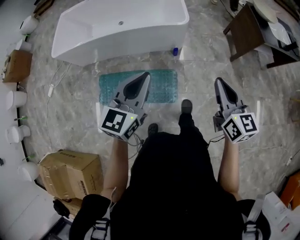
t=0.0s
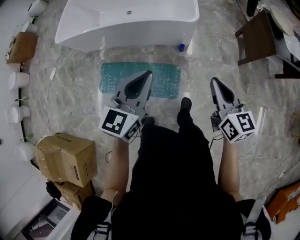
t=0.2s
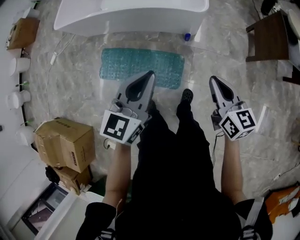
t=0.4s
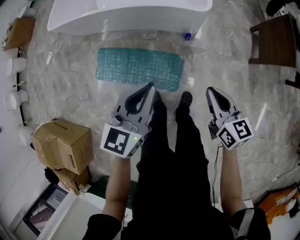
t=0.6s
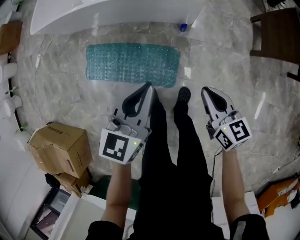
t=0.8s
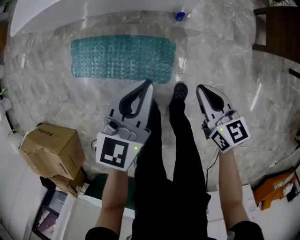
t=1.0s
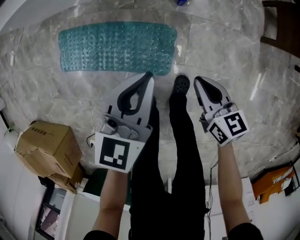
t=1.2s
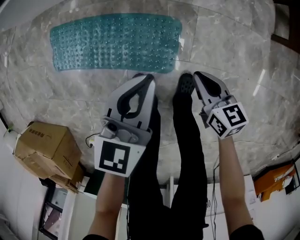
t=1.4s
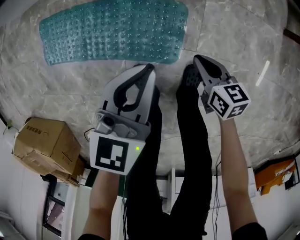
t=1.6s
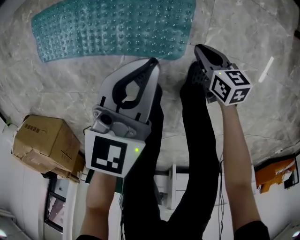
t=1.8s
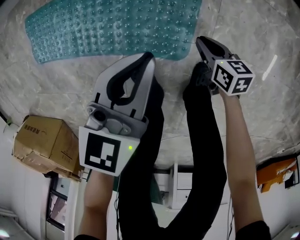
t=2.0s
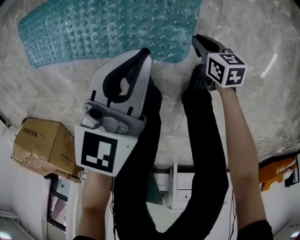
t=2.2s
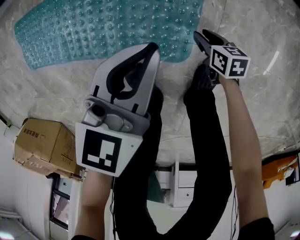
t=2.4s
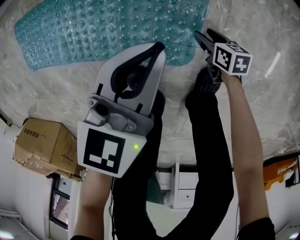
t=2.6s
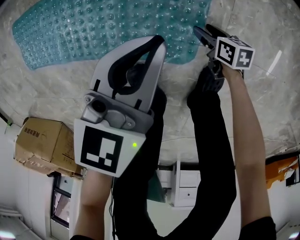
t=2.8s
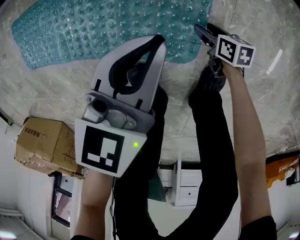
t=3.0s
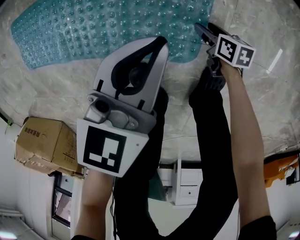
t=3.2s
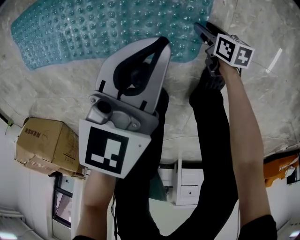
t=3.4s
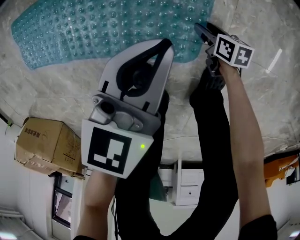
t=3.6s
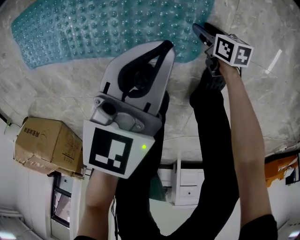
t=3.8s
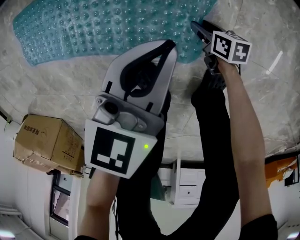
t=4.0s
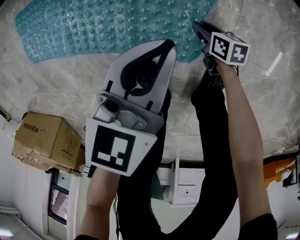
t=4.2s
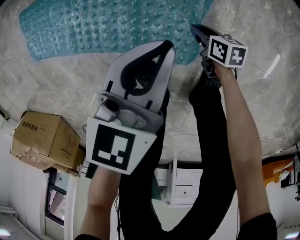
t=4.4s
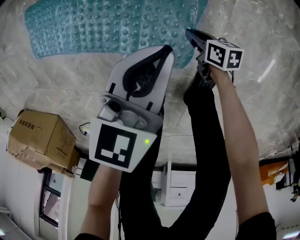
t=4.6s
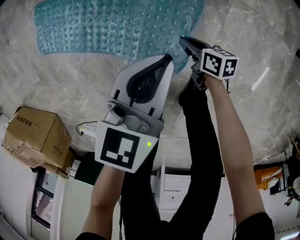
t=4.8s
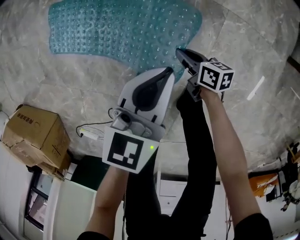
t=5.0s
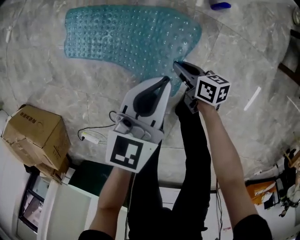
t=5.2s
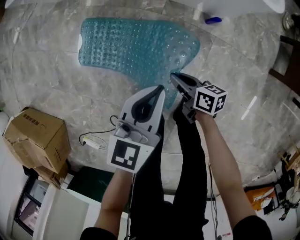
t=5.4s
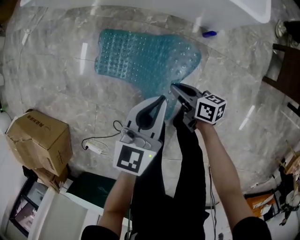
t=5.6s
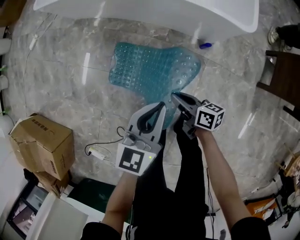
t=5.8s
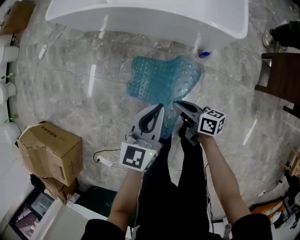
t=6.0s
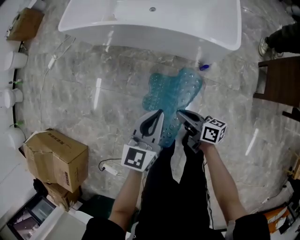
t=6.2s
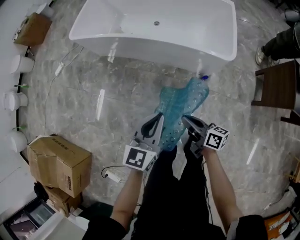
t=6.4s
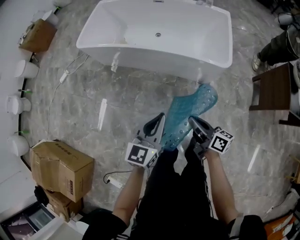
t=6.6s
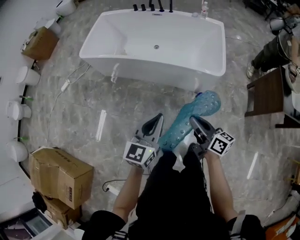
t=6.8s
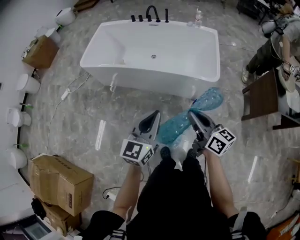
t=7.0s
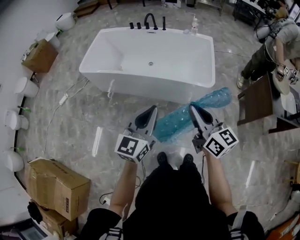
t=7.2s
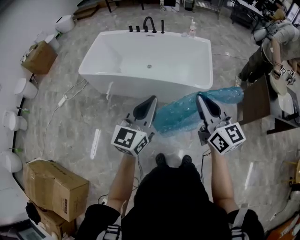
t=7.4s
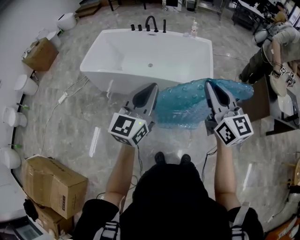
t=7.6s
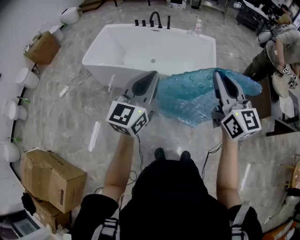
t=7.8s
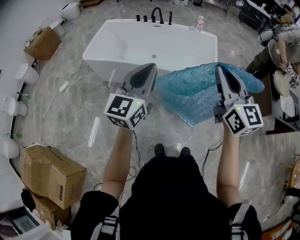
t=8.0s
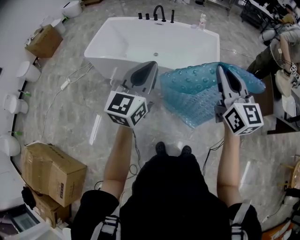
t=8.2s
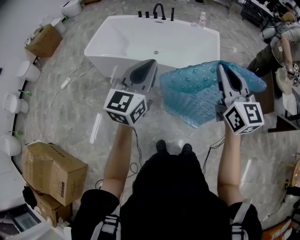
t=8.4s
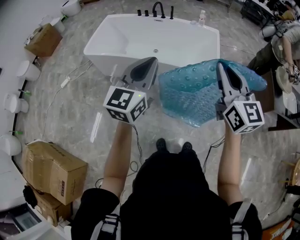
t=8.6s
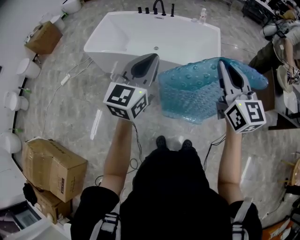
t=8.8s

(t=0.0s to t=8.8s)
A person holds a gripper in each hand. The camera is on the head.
t=0.0s - t=1.4s: The grippers both shift downward by about 60 cm. The left gripper swivels roughly 20 degrees. Meanwhile the right gripper changes its angle by about 40 degrees.
t=1.4s - t=3.0s: The right gripper goes some 50 cm downward, changes its angle by some 30 degrees, and opens up. Meanwhile the left gripper travels downward by some 30 cm.
t=3.0s - t=4.4s: The right gripper travels to the left by about 5 cm, and closes its fingers.
t=4.4s - t=5.8s: The two grippers go roughly 50 cm upward. The right gripper turns by roughly 30 degrees; the left gripper rotates approximately 20 degrees.
t=5.8s - t=7.4s: The two grippers go approximately 50 cm upward. The right gripper rotates roughly 70 degrees. The left gripper changes its angle by some 30 degrees.
t=7.4s - t=8.8s: The grippers both shift upward by some 5 cm.

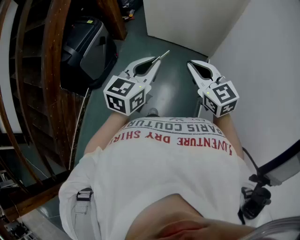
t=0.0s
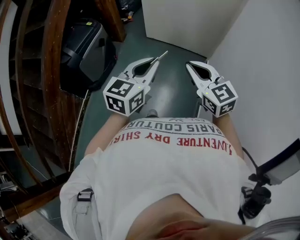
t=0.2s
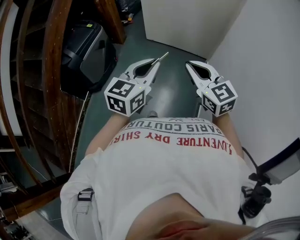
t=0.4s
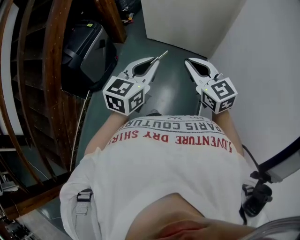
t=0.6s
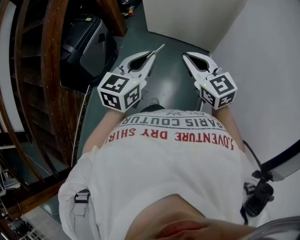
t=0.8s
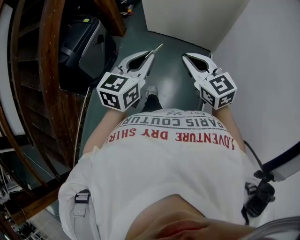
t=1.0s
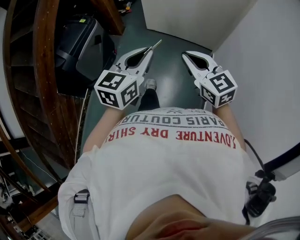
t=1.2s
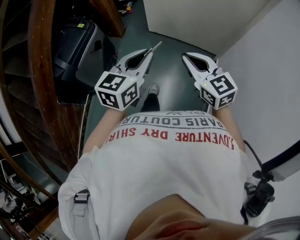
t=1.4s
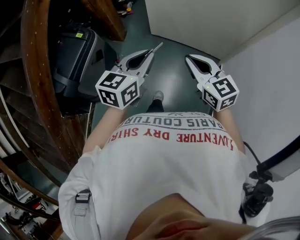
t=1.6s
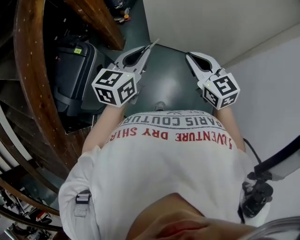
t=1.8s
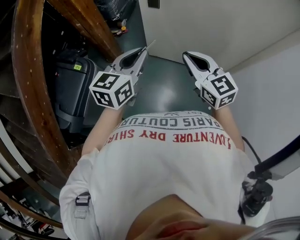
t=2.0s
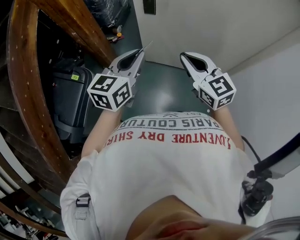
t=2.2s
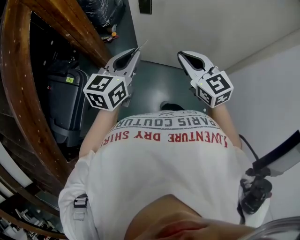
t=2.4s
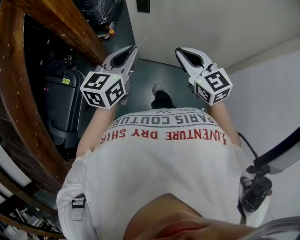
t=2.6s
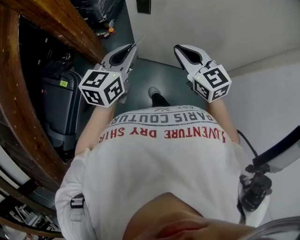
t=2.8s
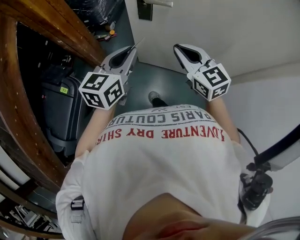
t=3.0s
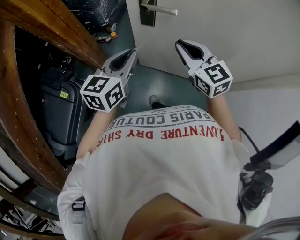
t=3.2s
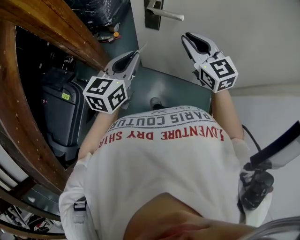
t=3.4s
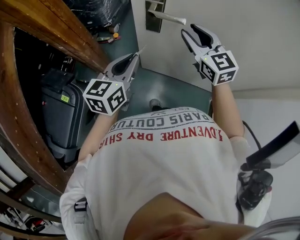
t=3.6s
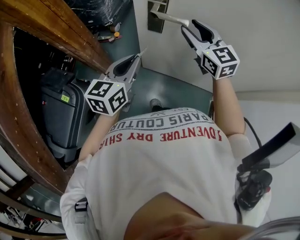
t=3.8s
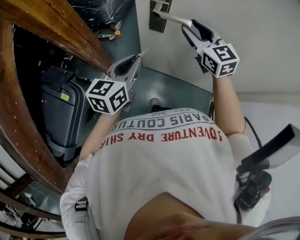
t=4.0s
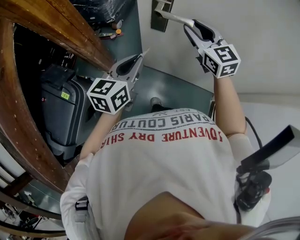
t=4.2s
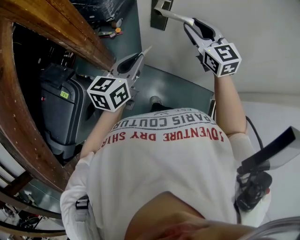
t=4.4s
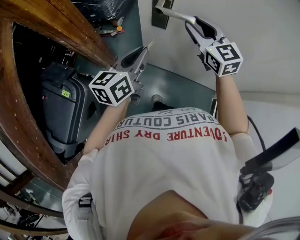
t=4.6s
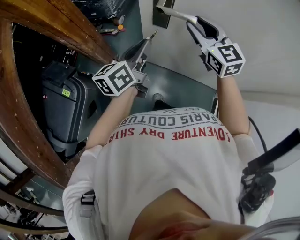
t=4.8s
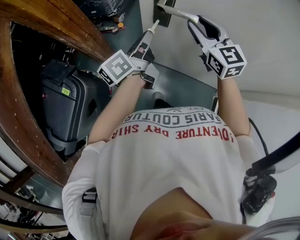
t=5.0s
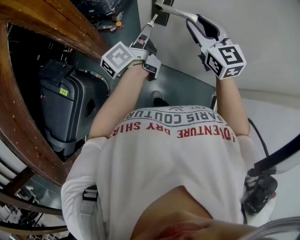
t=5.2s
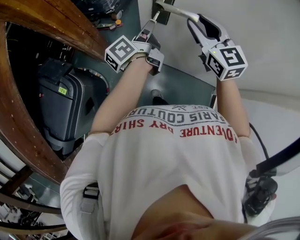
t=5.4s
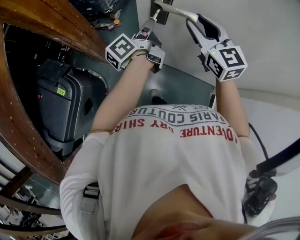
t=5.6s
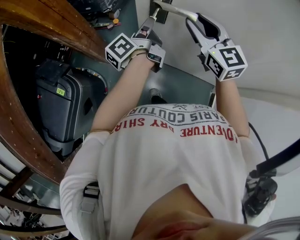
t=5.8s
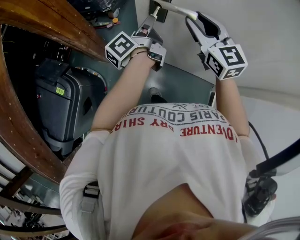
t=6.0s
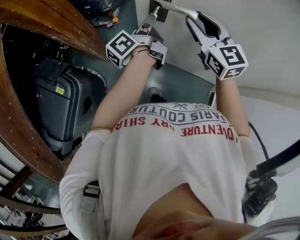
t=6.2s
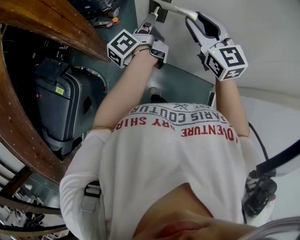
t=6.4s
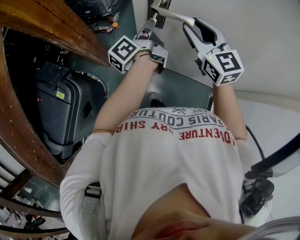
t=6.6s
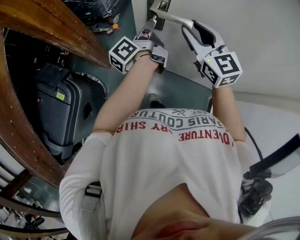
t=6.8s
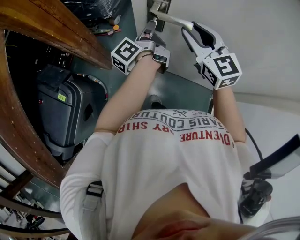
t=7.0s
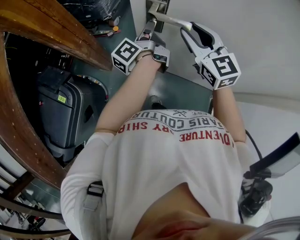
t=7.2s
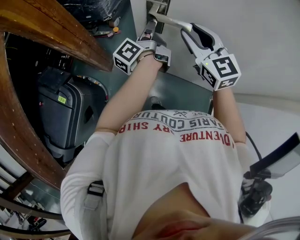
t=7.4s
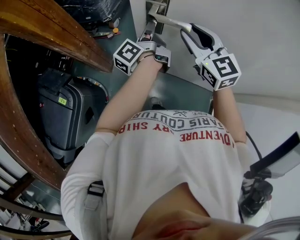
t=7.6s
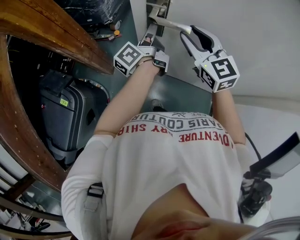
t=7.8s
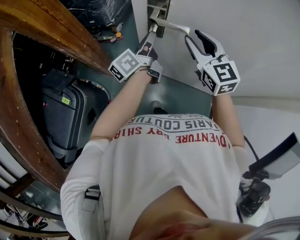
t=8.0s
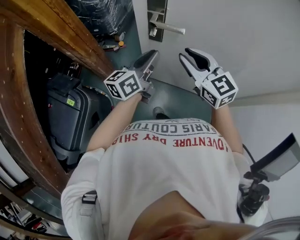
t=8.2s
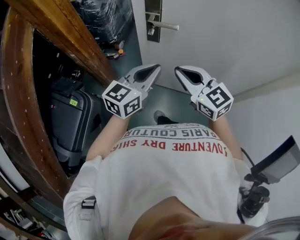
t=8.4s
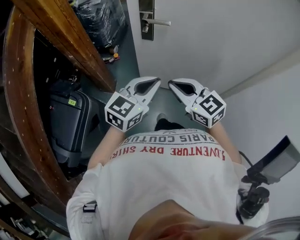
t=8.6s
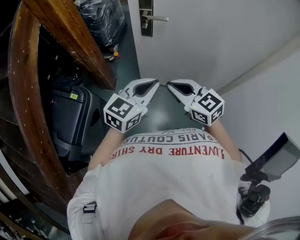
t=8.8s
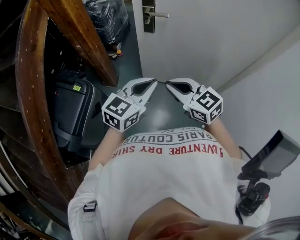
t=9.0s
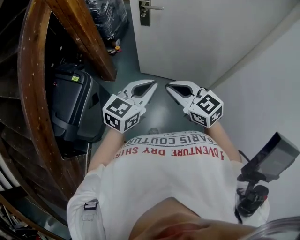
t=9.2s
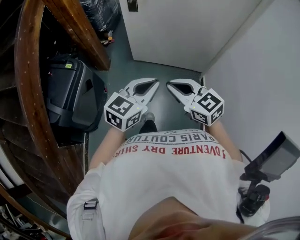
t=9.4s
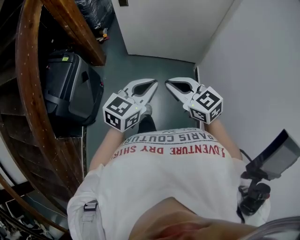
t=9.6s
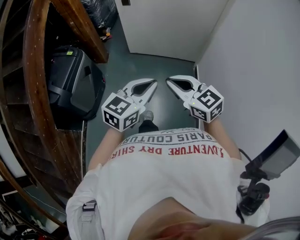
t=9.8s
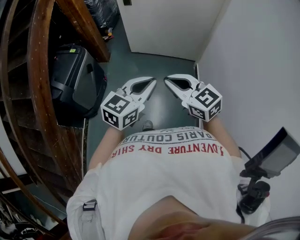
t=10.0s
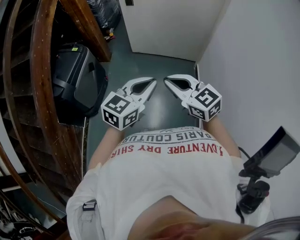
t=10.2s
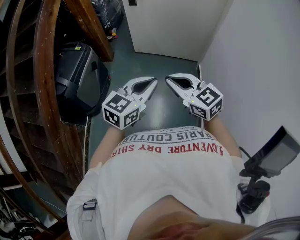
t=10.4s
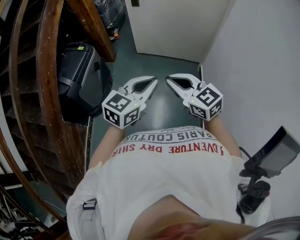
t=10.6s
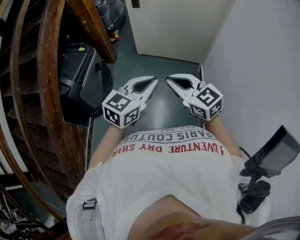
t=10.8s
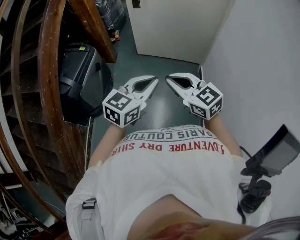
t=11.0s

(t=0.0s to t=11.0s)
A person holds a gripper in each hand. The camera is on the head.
t=0.0s - t=1.6s: The two grippers go roughly 35 cm forward.
t=1.6s - t=3.2s: The two grippers travel together, forward, approximately 40 cm.
t=3.2s - t=4.8s: The left gripper moves forward, about 10 cm, and changes its angle by roughly 30 degrees. Meanwhile the right gripper shifts about 10 cm forward, and opens up.
t=4.8s - t=6.2s: The left gripper heads forward, covering roughly 10 cm, and swivels approximately 40 degrees.
t=6.2s - t=7.8s: The grippers stay close to where they were, moving slightly.
t=7.8s - t=9.4s: Both grippers are carried backward, some 60 cm. The left gripper rolls clockwise, seen from behind, by about 70 degrees. The right gripper closes its fingers.
t=9.4s - t=11.0s: The grippers both shift backward by about 30 cm.

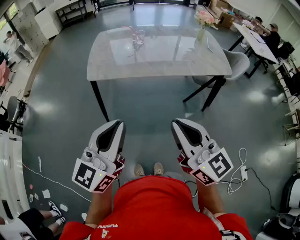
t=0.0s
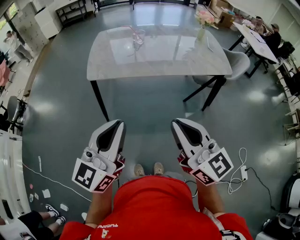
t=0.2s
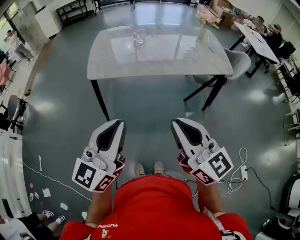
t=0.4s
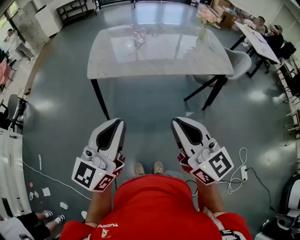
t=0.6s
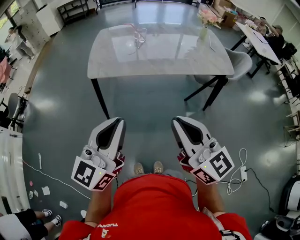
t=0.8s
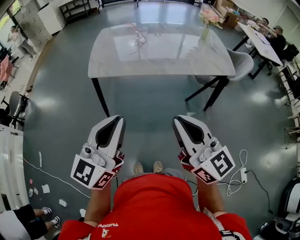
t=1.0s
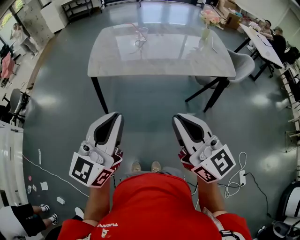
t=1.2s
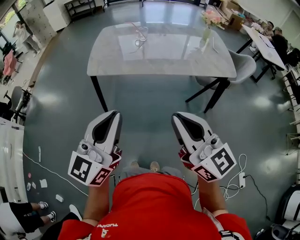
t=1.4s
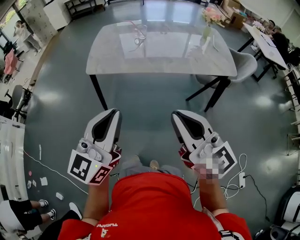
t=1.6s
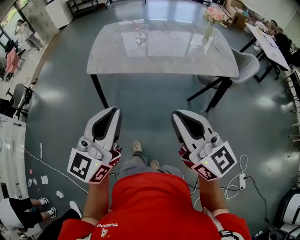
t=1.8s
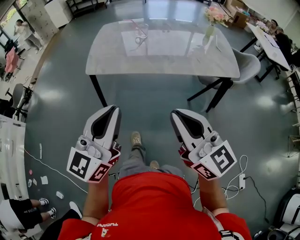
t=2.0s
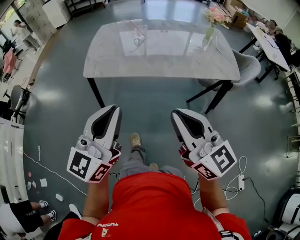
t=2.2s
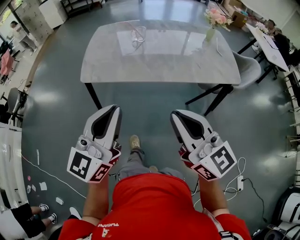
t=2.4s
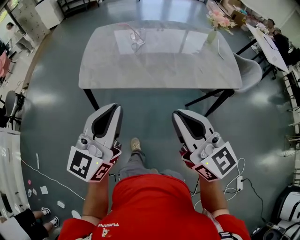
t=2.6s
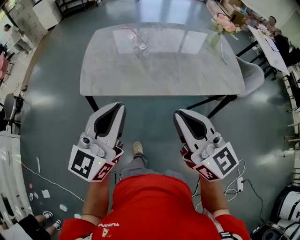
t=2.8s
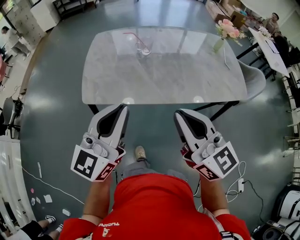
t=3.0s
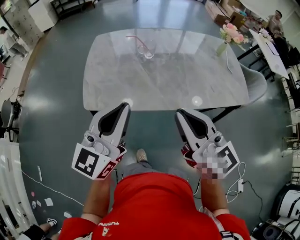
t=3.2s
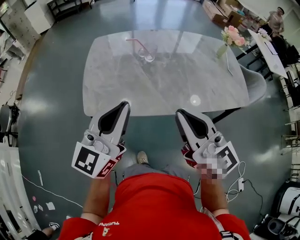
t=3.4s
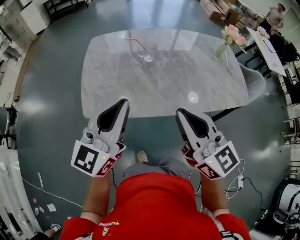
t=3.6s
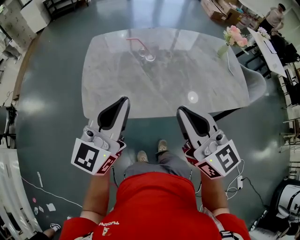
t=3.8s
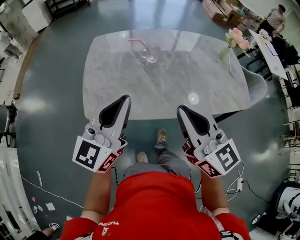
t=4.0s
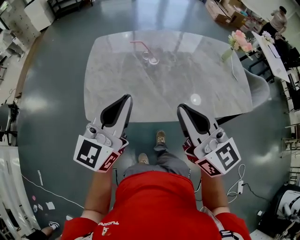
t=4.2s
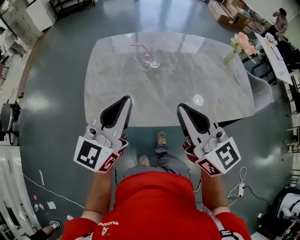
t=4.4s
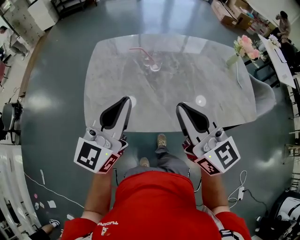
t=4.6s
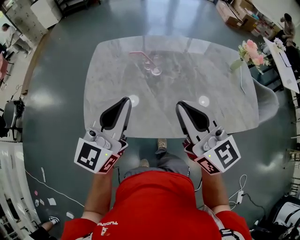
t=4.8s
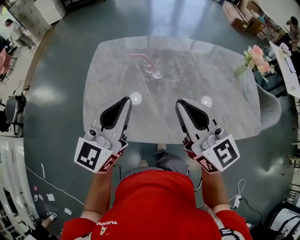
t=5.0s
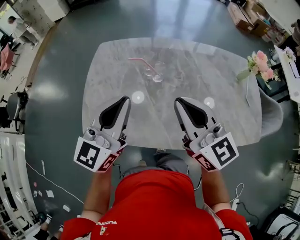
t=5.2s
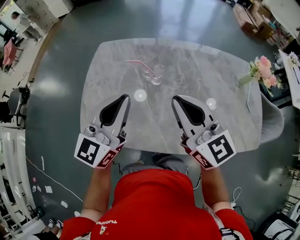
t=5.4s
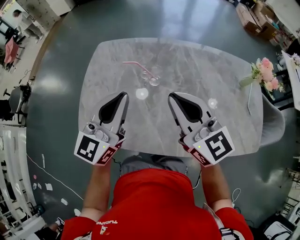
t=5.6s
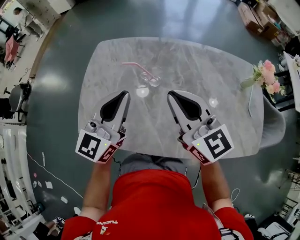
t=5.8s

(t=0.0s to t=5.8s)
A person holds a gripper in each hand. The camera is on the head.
t=0.0s - t=1.4s: The grippers stay close to where they were, moving slightly.
t=1.4s - t=2.8s: Both grippers travel together forward, about 20 cm.
t=2.8s - t=4.4s: The grippers both shift forward by about 20 cm.
t=4.4s - t=5.8s: The left gripper moves forward and to the right, about 20 cm. The right gripper heads forward, covering some 20 cm.
